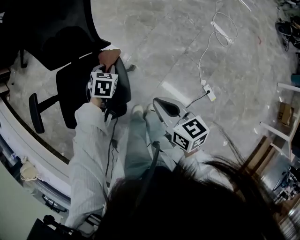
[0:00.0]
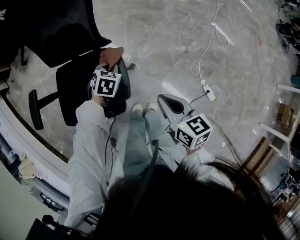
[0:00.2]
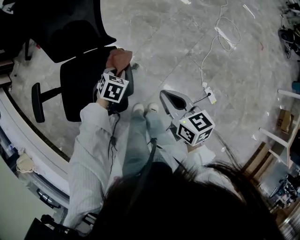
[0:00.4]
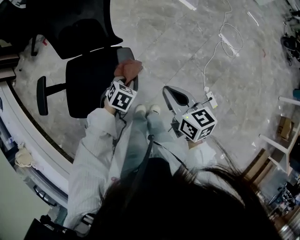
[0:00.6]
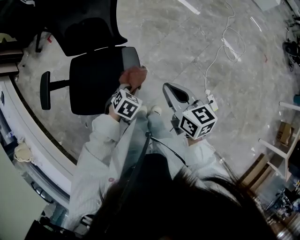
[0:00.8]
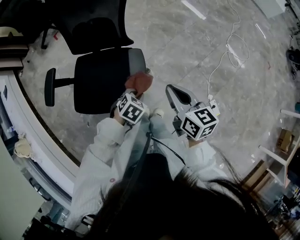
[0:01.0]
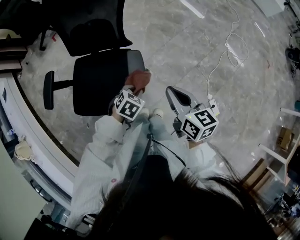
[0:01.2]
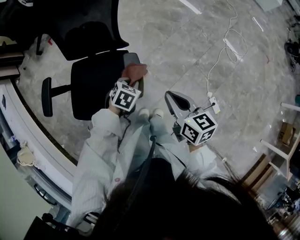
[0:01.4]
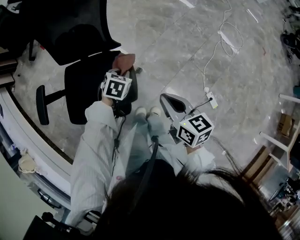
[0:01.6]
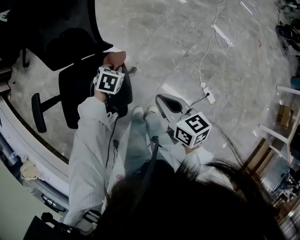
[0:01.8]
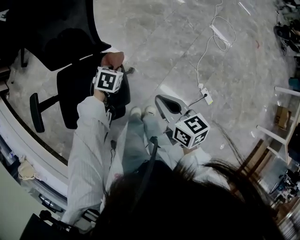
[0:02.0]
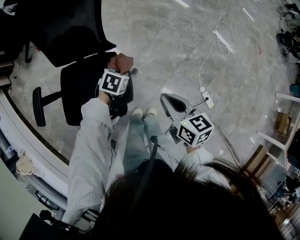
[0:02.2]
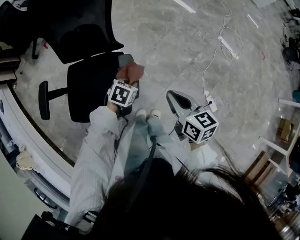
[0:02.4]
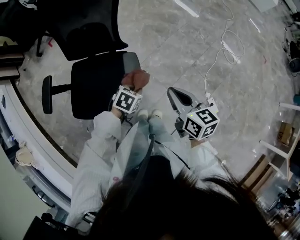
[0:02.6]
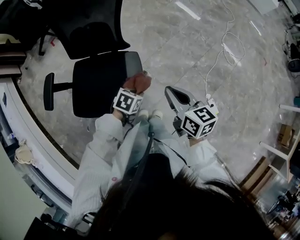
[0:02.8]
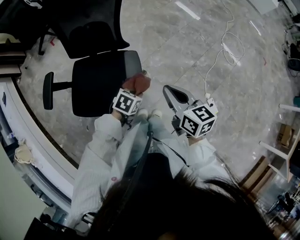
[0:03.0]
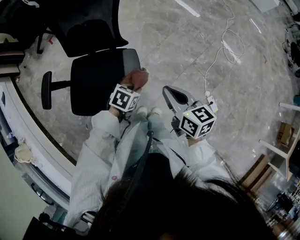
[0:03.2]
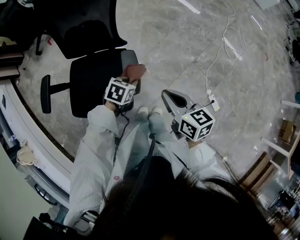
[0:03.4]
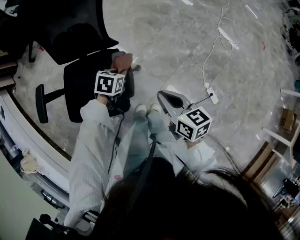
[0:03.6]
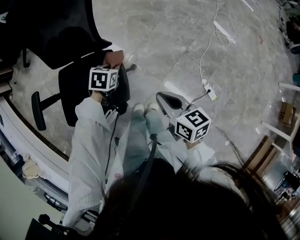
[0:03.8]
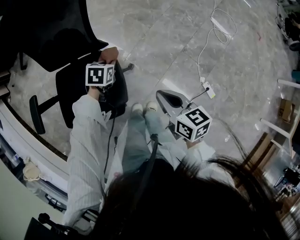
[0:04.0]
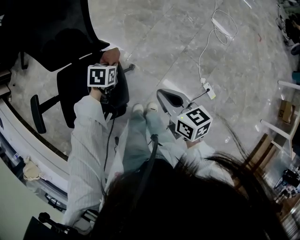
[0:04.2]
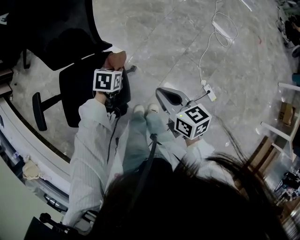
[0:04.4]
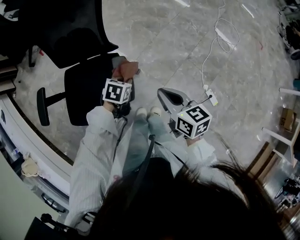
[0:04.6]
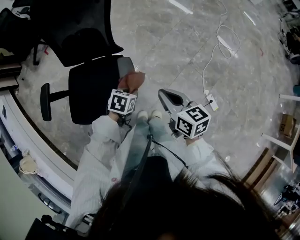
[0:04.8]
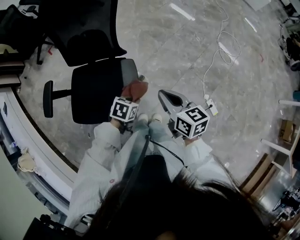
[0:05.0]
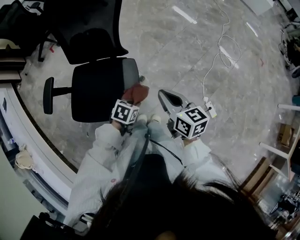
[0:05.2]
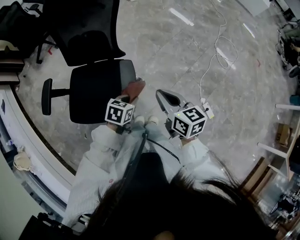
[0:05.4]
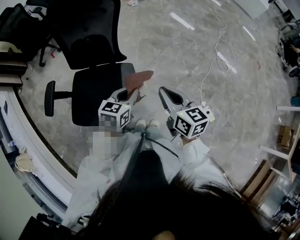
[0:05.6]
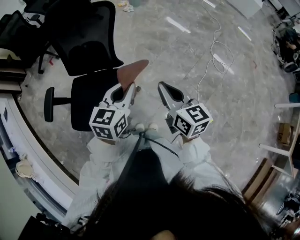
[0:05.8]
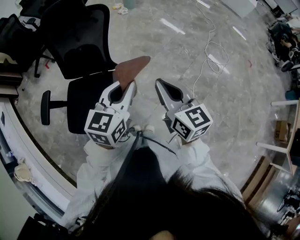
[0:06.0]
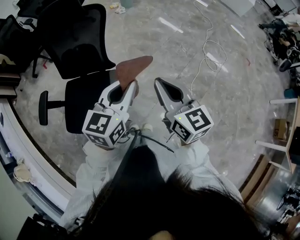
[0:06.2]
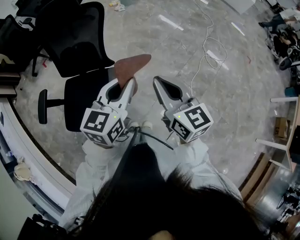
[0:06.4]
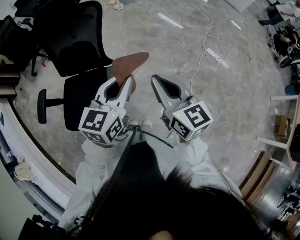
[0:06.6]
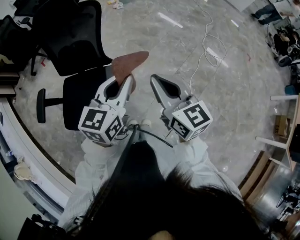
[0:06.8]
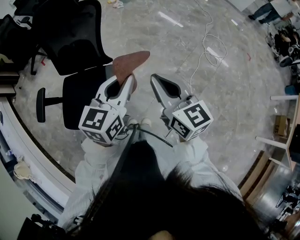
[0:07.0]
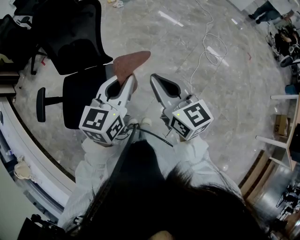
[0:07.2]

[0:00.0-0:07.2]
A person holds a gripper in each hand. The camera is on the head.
0:00.0 to 0:01.4: The left gripper moves backward, roughly 10 cm.
0:01.4 to 0:02.8: The left gripper moves backward, roughly 10 cm.
0:02.8 to 0:04.4: The right gripper heads downward and forward, covering roughly 10 cm. Meanwhile the left gripper travels forward by approximately 15 cm.
0:04.4 to 0:05.8: The right gripper travels upward by roughly 15 cm. The left gripper heads upward and backward, covering about 30 cm, and points its fingers roughly 40 degrees further upward.
0:05.8 to 0:07.2: The right gripper moves upward, some 5 cm, while the left gripper heads upward and to the right, covering approximately 10 cm.

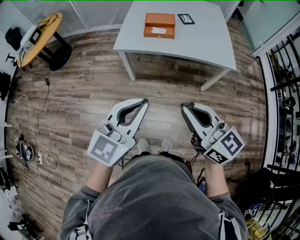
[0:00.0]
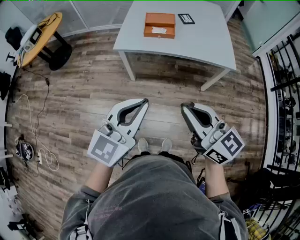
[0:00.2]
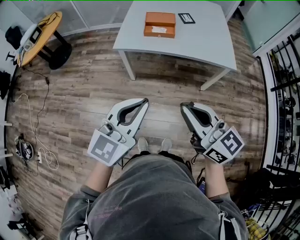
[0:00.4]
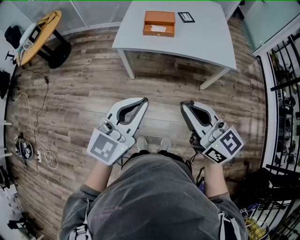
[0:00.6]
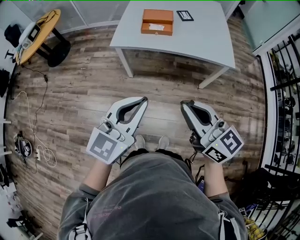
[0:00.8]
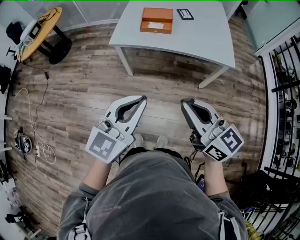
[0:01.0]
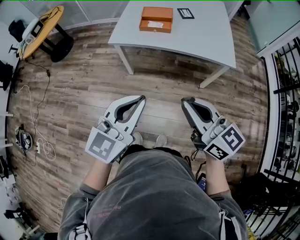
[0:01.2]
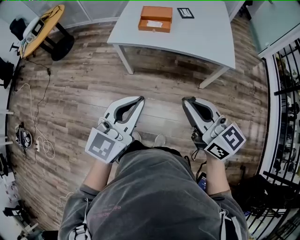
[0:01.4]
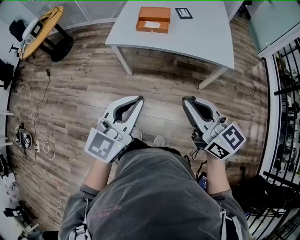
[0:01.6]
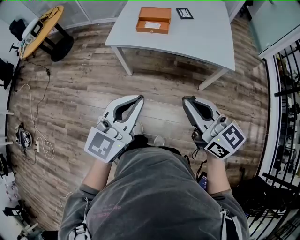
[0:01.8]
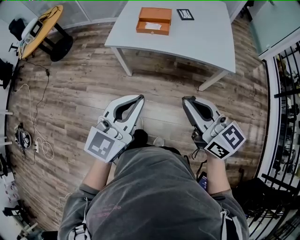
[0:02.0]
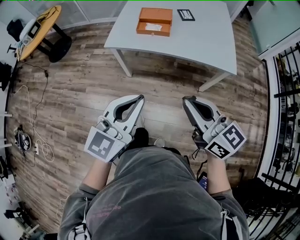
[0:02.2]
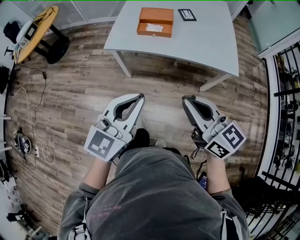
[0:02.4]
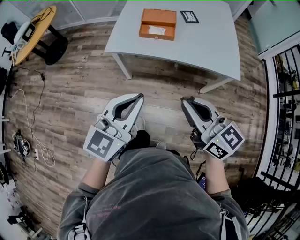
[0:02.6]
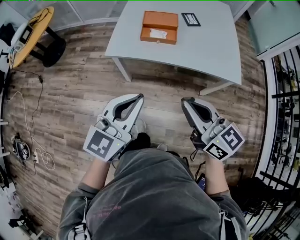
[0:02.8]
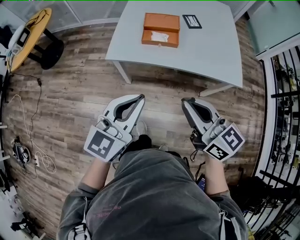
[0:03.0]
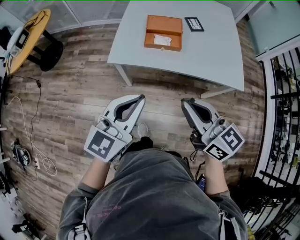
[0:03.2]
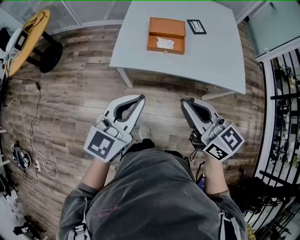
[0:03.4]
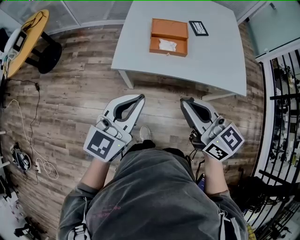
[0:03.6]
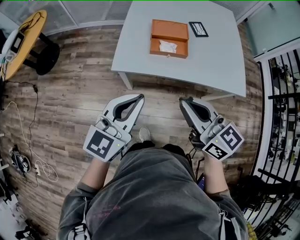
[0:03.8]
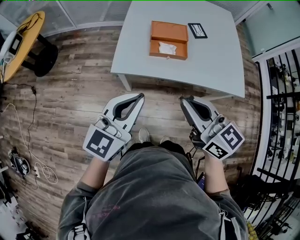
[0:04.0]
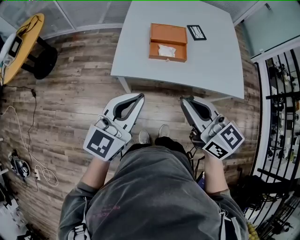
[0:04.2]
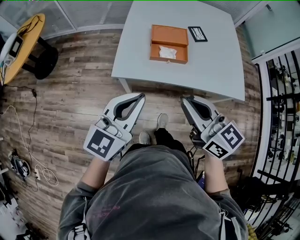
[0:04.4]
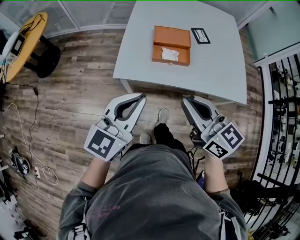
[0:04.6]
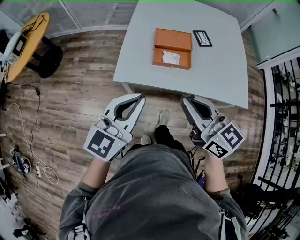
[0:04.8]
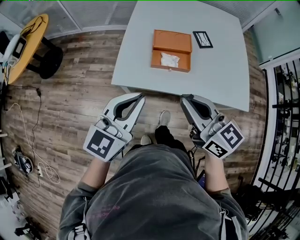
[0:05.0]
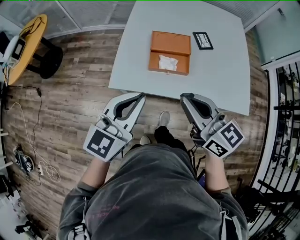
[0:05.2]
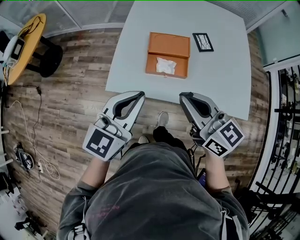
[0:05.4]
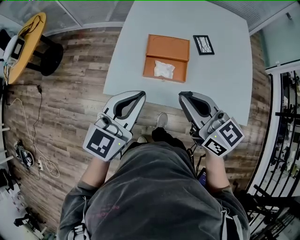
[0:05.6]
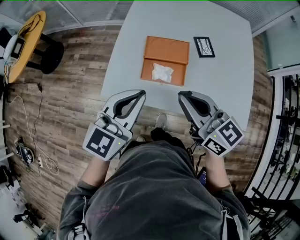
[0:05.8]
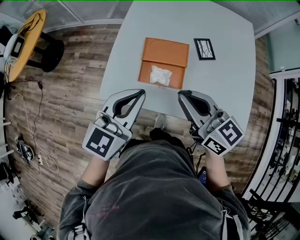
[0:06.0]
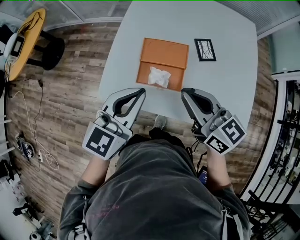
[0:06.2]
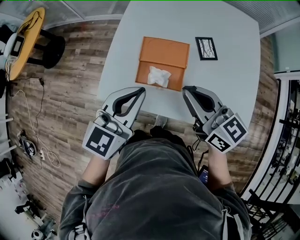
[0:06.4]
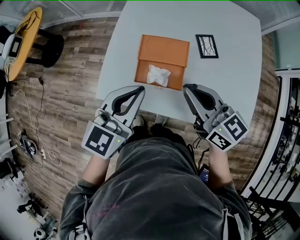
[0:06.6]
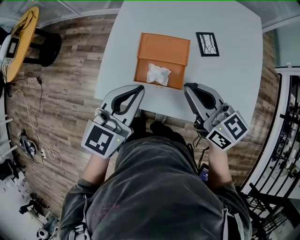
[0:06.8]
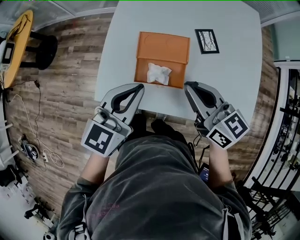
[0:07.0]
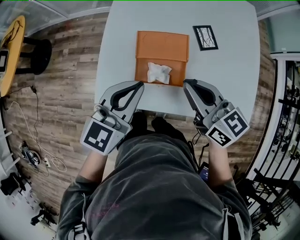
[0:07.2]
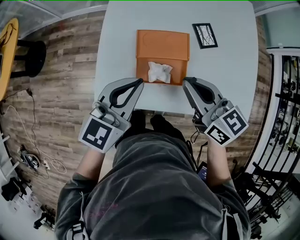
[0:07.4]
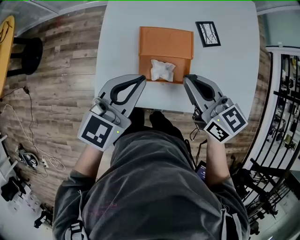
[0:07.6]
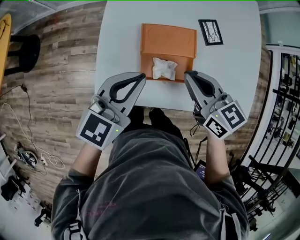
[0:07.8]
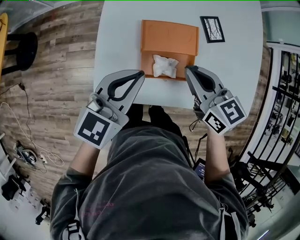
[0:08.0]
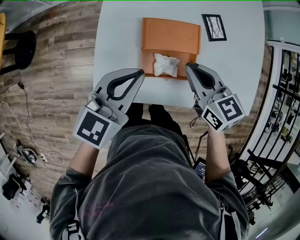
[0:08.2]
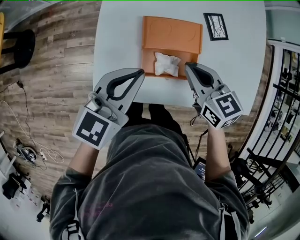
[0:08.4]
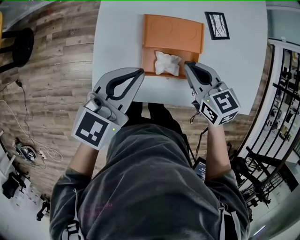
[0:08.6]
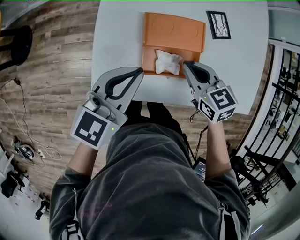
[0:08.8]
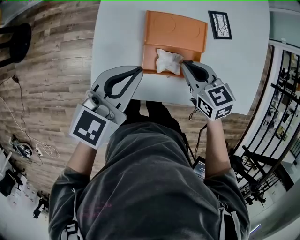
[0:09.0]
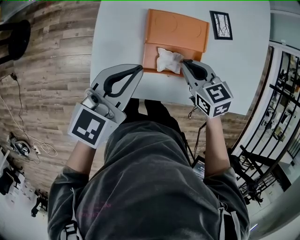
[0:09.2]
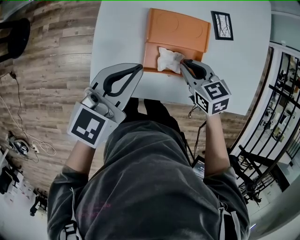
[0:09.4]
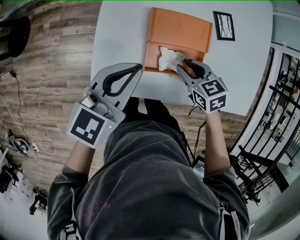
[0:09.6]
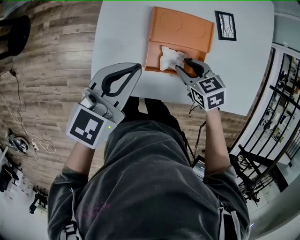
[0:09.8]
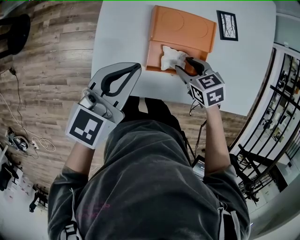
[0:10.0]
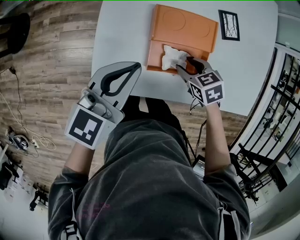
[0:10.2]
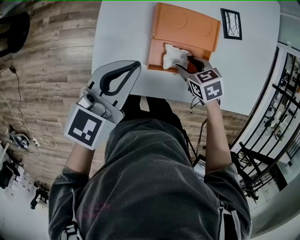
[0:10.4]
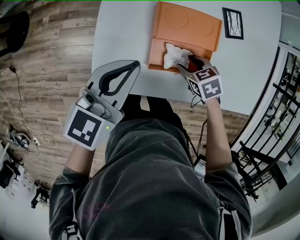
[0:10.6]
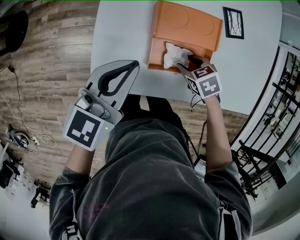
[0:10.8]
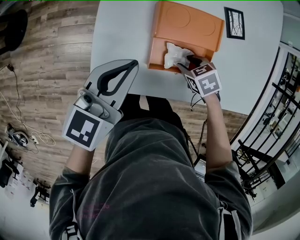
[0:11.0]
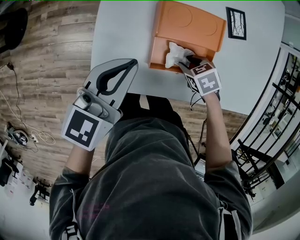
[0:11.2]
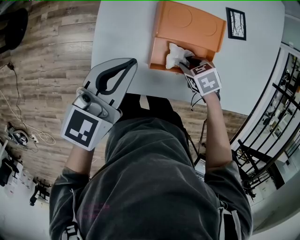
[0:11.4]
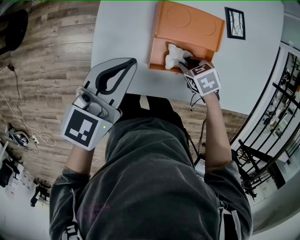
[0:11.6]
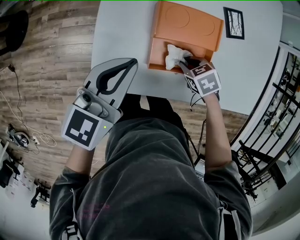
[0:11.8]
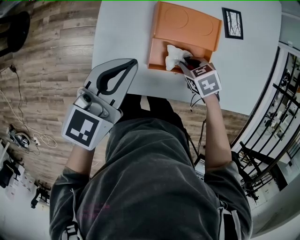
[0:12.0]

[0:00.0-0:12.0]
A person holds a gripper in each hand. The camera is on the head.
0:00.0 to 0:01.6: Both grippers move to the right, roughly 10 cm.
0:01.6 to 0:03.0: Both grippers travel together forward and to the left, some 20 cm.
0:03.0 to 0:04.4: The two grippers go about 15 cm forward and to the left.
0:04.4 to 0:06.0: The grippers both shift forward and to the right by roughly 25 cm.
0:06.0 to 0:07.6: The grippers both shift forward and downward by some 15 cm.
0:07.6 to 0:09.0: The right gripper is displaced downward by some 15 cm, and changes its angle by approximately 20 degrees. Meanwhile the left gripper shifts approximately 5 cm downward.
0:09.0 to 0:10.4: The right gripper shifts approximately 10 cm downward, turns by about 20 degrees, and opens its fingers.
0:10.4 to 0:12.0: The right gripper closes its fingers.

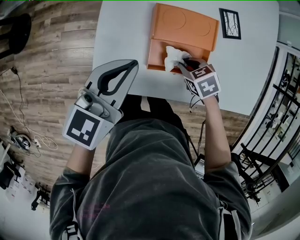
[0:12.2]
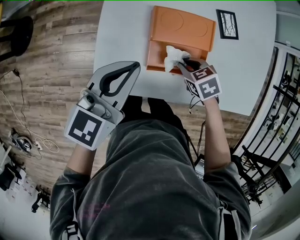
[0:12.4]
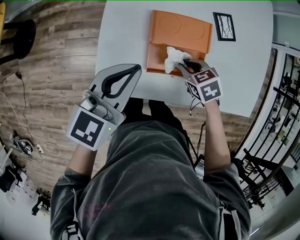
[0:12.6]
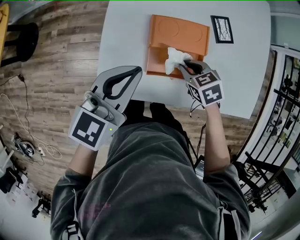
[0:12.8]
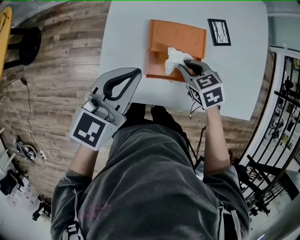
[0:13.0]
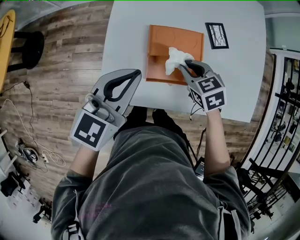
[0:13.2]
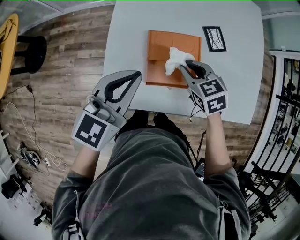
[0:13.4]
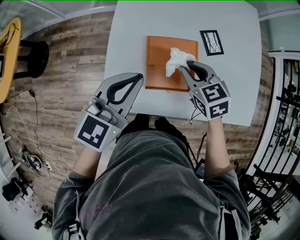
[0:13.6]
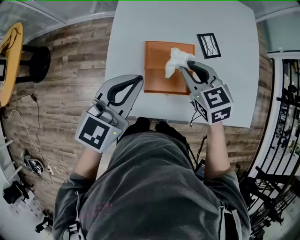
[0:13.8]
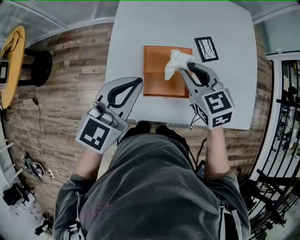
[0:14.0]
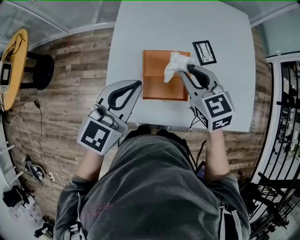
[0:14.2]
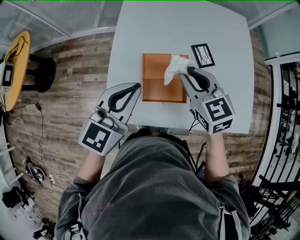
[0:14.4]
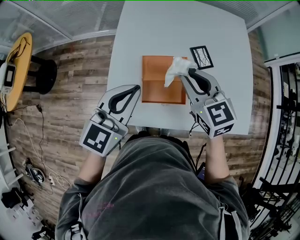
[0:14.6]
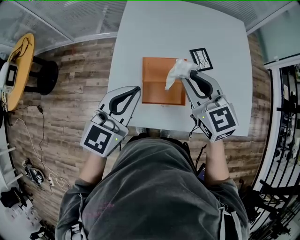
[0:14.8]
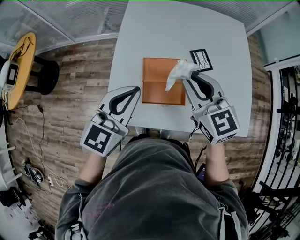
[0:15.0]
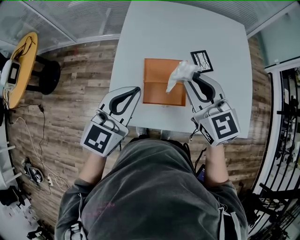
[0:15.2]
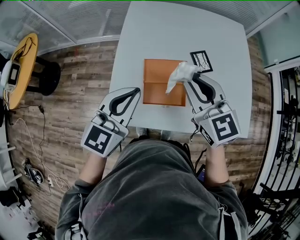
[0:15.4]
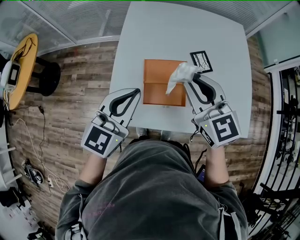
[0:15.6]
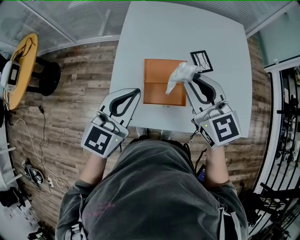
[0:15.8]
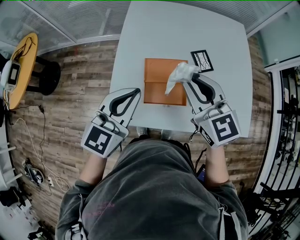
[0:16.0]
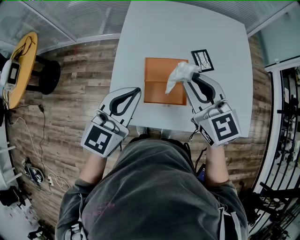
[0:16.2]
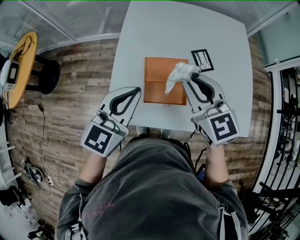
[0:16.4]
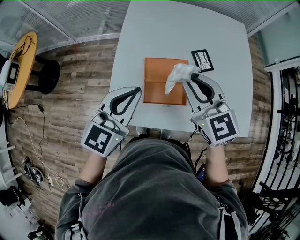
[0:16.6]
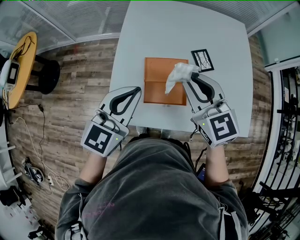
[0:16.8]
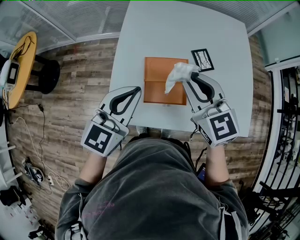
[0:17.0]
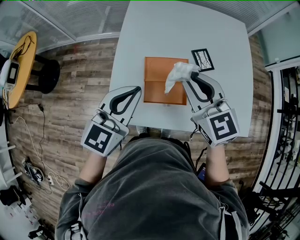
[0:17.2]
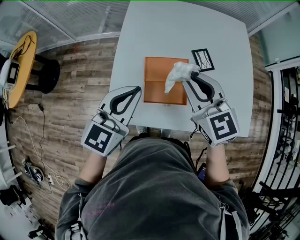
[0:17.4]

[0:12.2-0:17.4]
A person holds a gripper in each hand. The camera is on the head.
0:12.2 to 0:14.0: The left gripper travels upward and to the right by roughly 15 cm, while the right gripper travels upward by about 25 cm, and tilts its fingers some 40 degrees upward.
0:14.0 to 0:15.6: The right gripper heads upward, covering about 10 cm.
0:15.6 to 0:17.4: Both grippers stay put.
